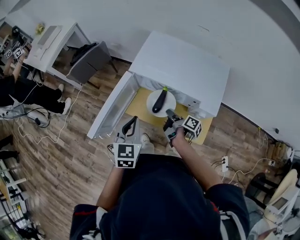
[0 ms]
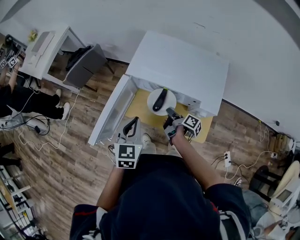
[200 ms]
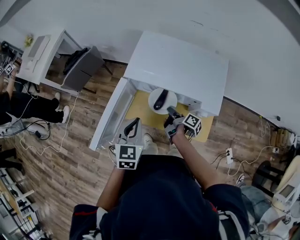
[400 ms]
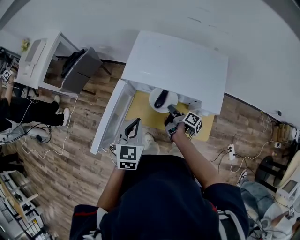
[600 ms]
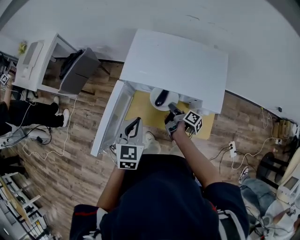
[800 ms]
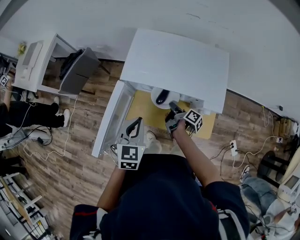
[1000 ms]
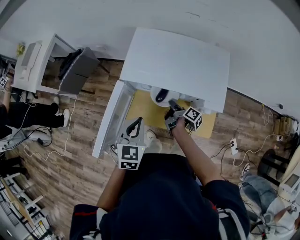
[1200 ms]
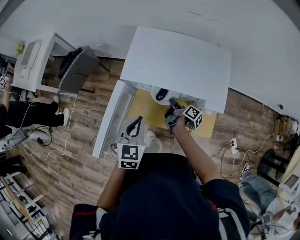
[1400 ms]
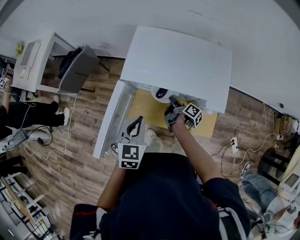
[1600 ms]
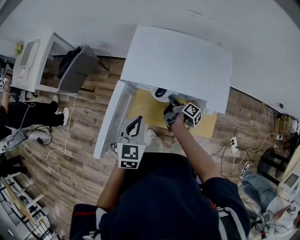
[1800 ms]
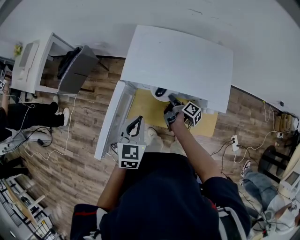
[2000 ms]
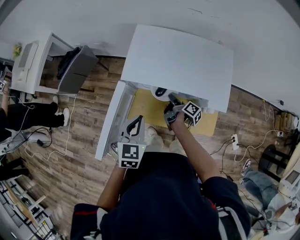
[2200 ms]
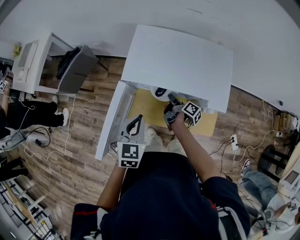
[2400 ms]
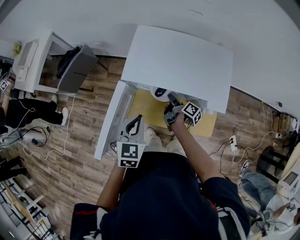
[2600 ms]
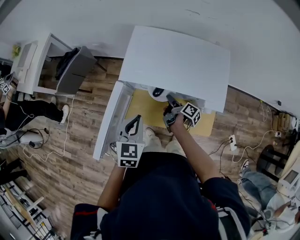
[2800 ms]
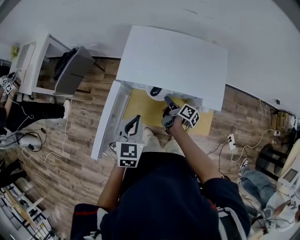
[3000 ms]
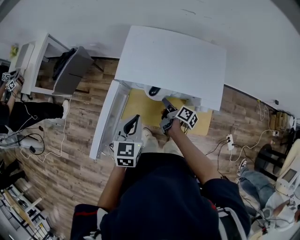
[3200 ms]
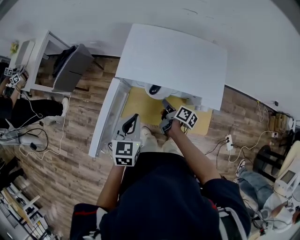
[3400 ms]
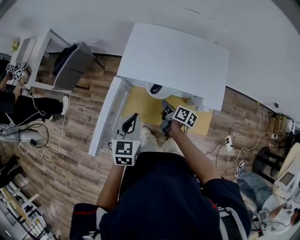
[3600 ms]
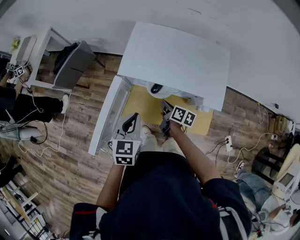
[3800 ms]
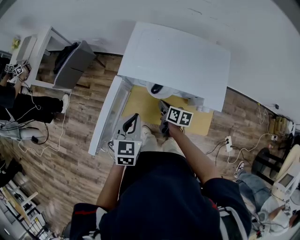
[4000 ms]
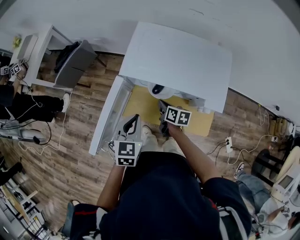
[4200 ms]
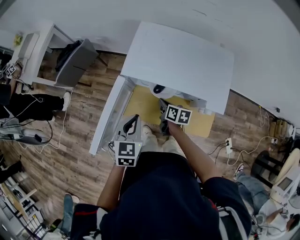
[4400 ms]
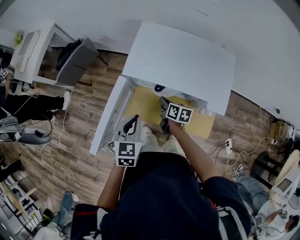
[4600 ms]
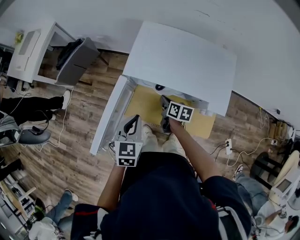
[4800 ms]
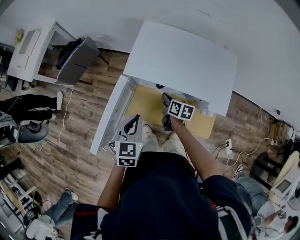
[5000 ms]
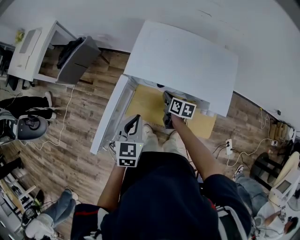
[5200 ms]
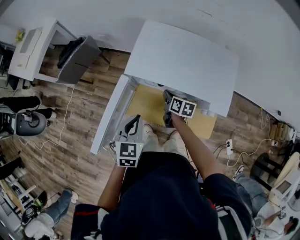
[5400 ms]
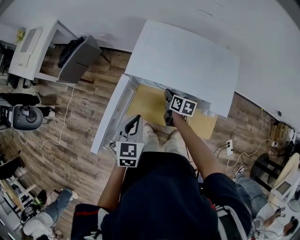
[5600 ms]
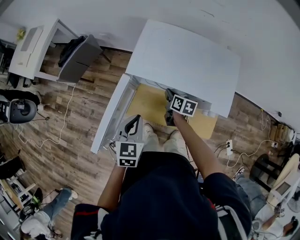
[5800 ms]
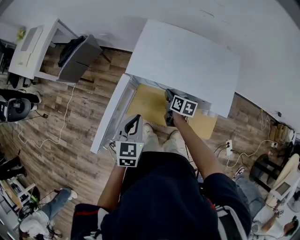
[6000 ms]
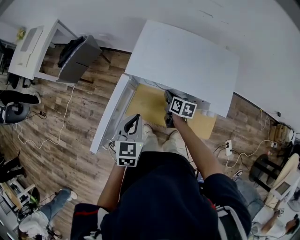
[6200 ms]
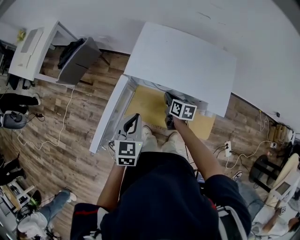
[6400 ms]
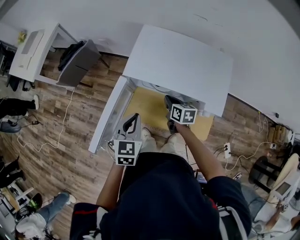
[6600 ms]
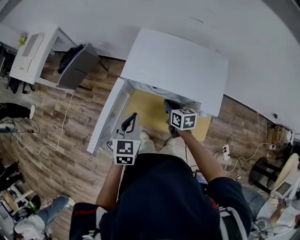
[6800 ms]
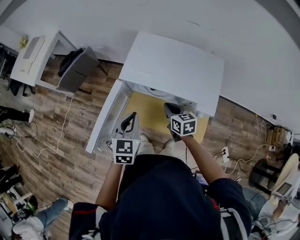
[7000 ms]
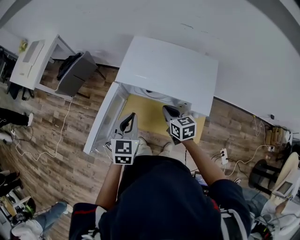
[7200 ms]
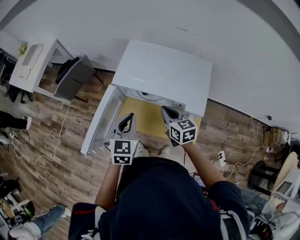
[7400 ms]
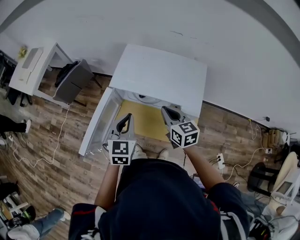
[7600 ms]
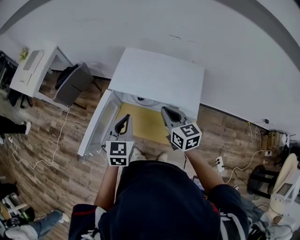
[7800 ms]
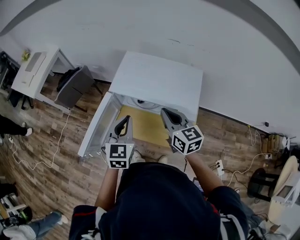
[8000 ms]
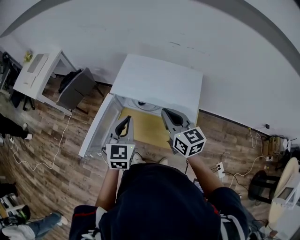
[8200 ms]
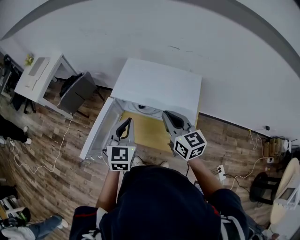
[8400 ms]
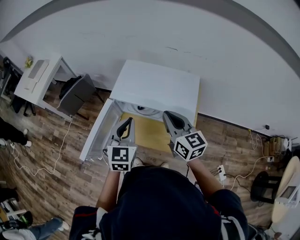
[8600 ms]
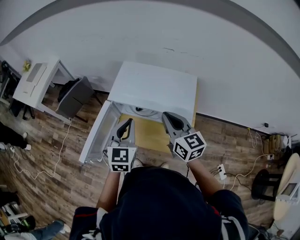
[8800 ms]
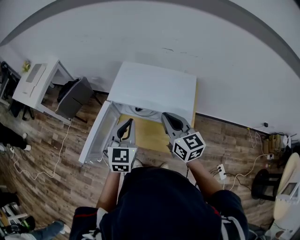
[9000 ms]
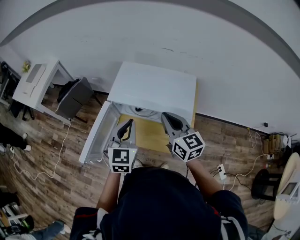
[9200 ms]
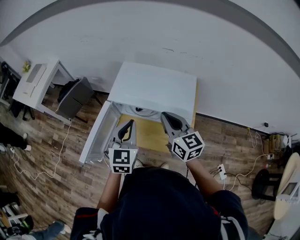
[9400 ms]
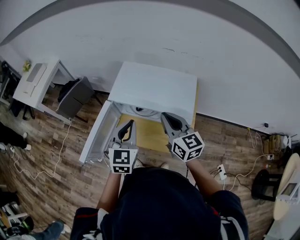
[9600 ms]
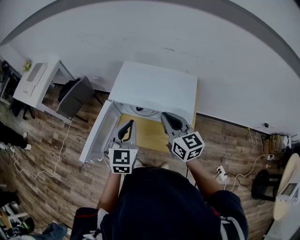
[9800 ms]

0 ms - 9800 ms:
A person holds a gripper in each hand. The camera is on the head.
0 ms - 1400 ms: The left gripper changes place by approximately 5 cm.
7000 ms - 8400 ms: The left gripper heads upward, covering about 10 cm.

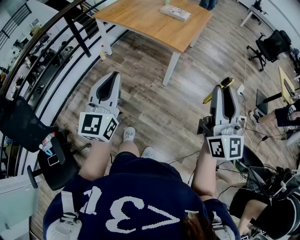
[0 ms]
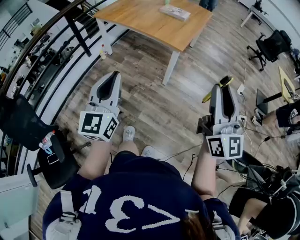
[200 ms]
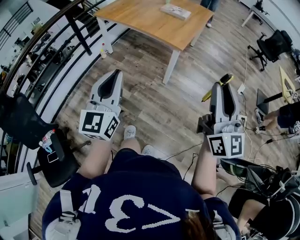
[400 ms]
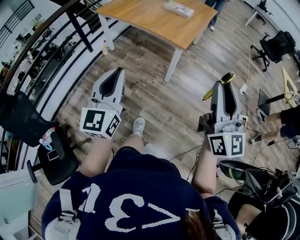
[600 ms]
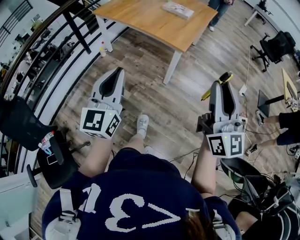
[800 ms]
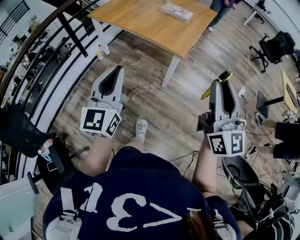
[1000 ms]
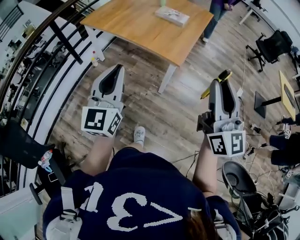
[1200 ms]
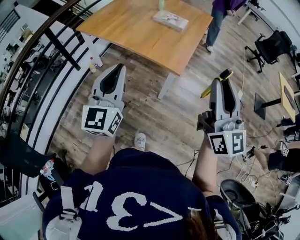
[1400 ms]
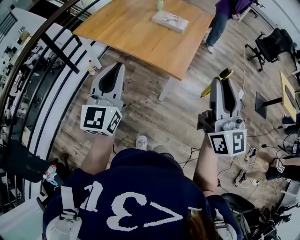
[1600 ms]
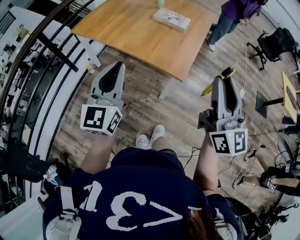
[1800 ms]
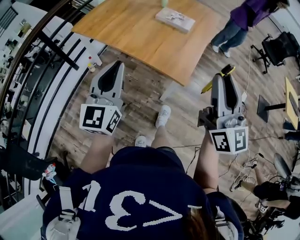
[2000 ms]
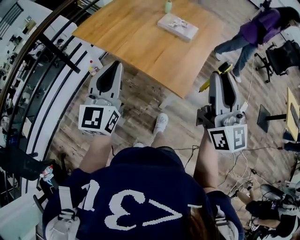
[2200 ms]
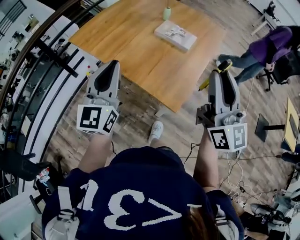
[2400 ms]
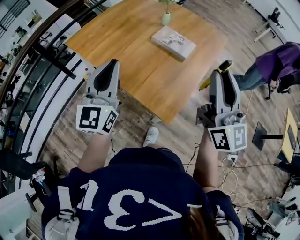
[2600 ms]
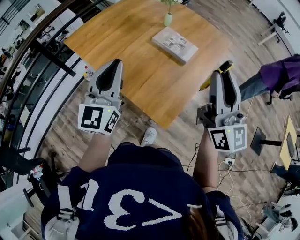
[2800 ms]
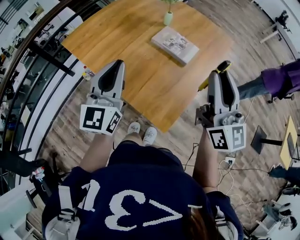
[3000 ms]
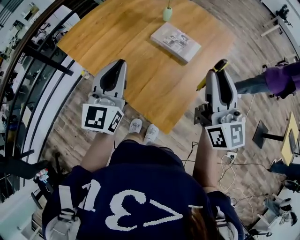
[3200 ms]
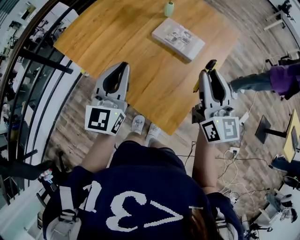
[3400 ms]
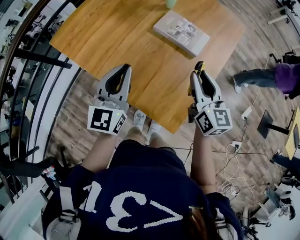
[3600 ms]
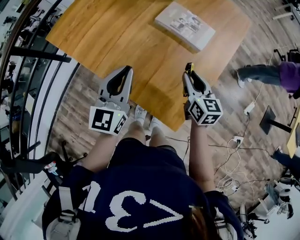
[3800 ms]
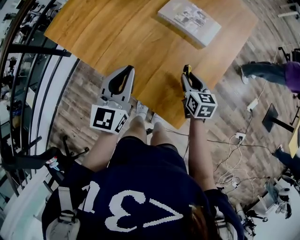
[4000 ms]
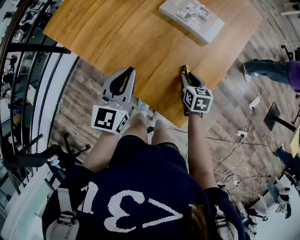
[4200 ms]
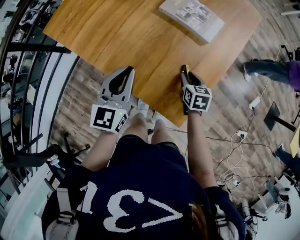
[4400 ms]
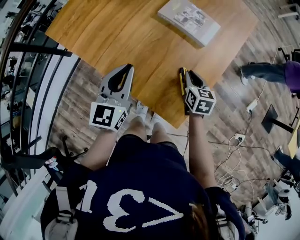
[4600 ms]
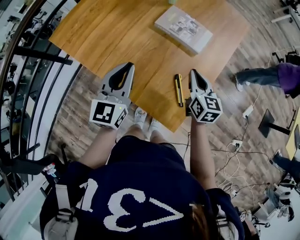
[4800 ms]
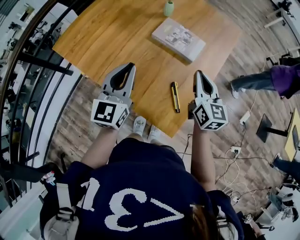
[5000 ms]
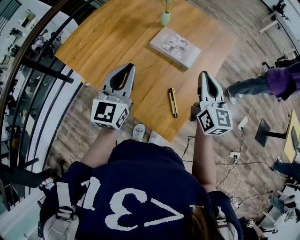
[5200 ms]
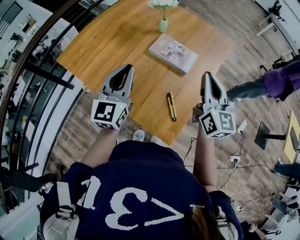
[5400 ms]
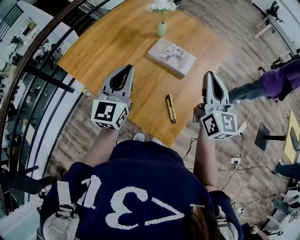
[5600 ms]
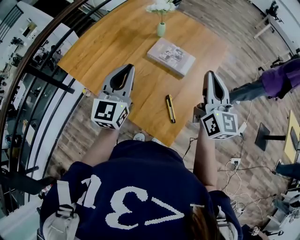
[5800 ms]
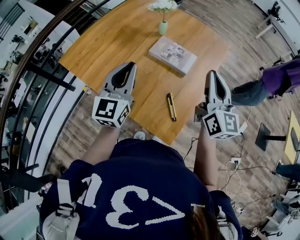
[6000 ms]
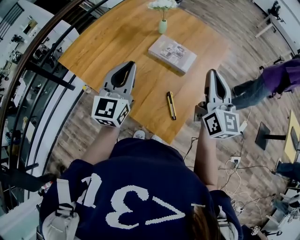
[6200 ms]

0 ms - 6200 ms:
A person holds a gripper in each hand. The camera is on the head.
0 ms - 1600 ms: The two grippers go approximately 30 cm forward.
1600 ms - 3200 ms: Both grippers travel together forward, some 40 cm.
3200 ms - 4600 ms: The right gripper travels downward by some 40 cm, and tips its fingers downward by approximately 50 degrees. Meanwhile the left gripper is displaced downward by about 15 cm.
4600 ms - 6200 ms: The right gripper is displaced upward by about 35 cm, and tips its fingers upward by some 50 degrees, while the left gripper heads upward, covering some 15 cm.

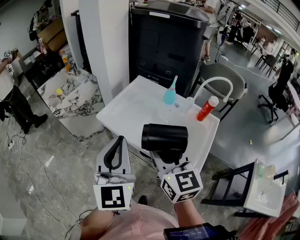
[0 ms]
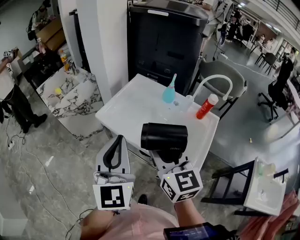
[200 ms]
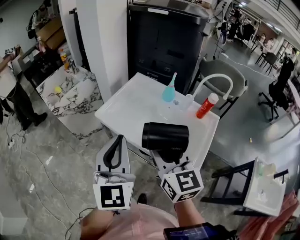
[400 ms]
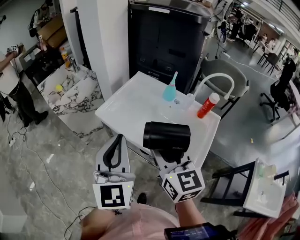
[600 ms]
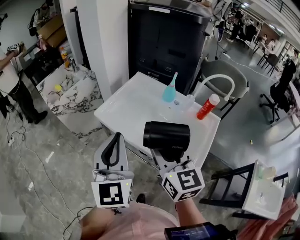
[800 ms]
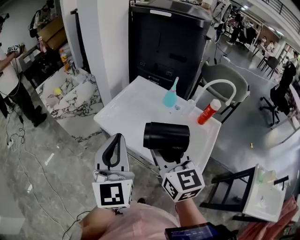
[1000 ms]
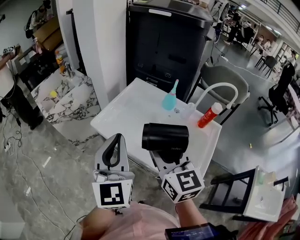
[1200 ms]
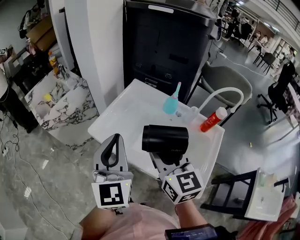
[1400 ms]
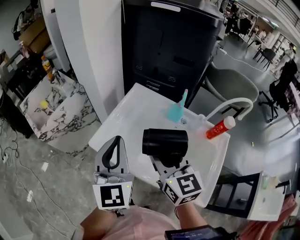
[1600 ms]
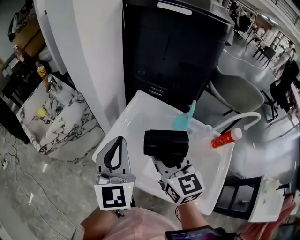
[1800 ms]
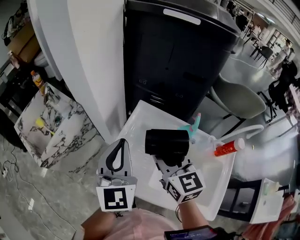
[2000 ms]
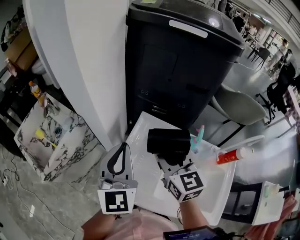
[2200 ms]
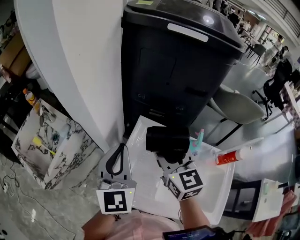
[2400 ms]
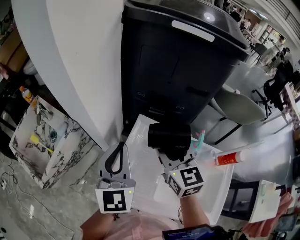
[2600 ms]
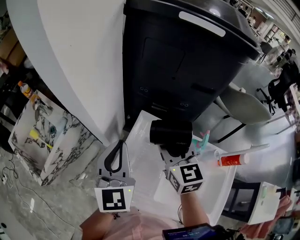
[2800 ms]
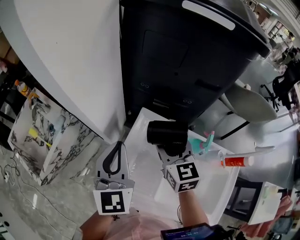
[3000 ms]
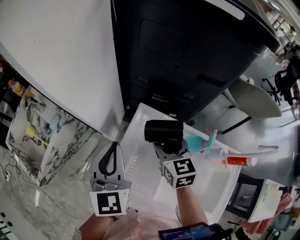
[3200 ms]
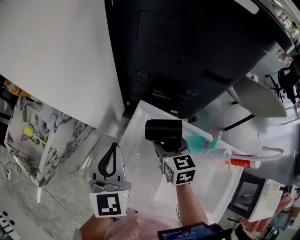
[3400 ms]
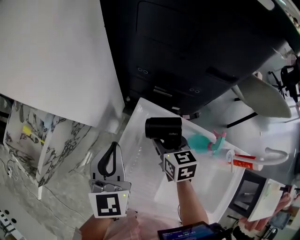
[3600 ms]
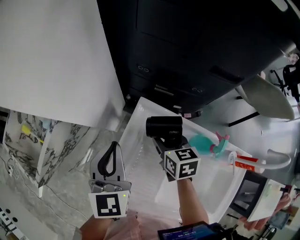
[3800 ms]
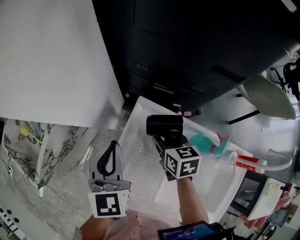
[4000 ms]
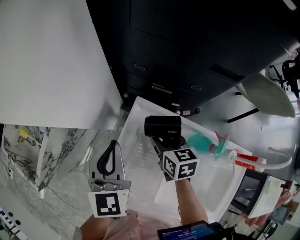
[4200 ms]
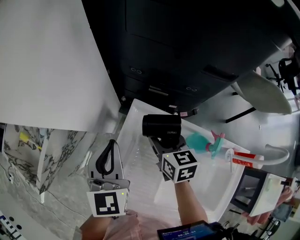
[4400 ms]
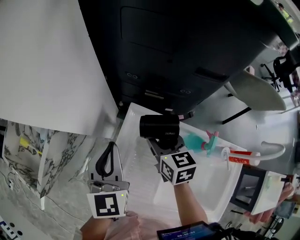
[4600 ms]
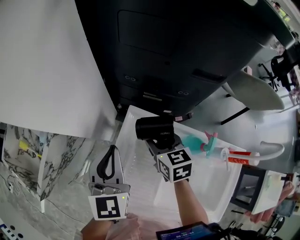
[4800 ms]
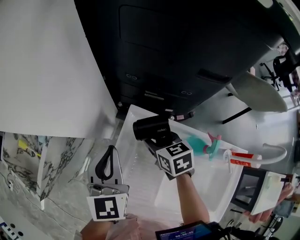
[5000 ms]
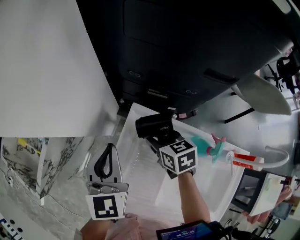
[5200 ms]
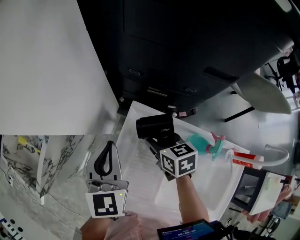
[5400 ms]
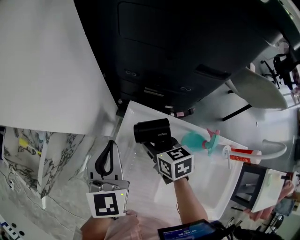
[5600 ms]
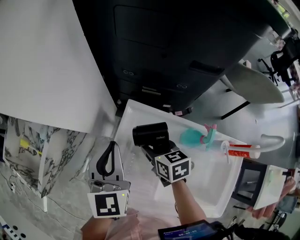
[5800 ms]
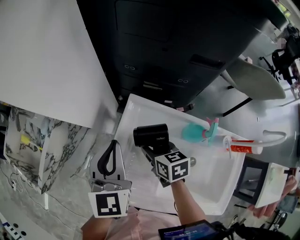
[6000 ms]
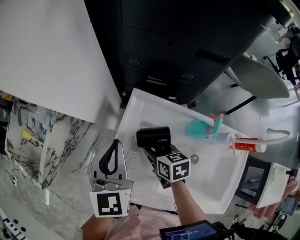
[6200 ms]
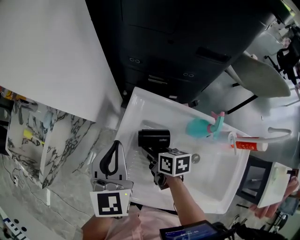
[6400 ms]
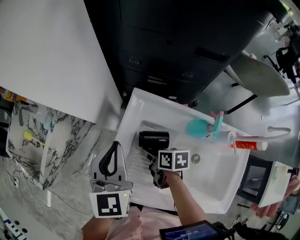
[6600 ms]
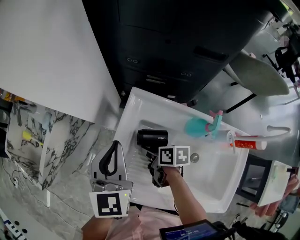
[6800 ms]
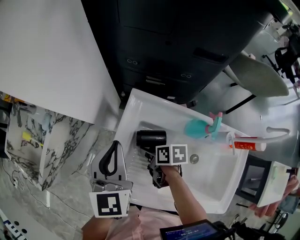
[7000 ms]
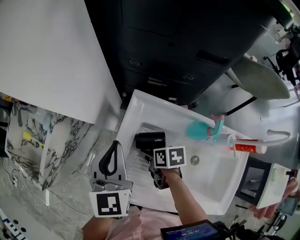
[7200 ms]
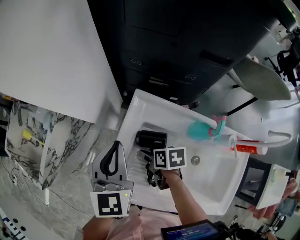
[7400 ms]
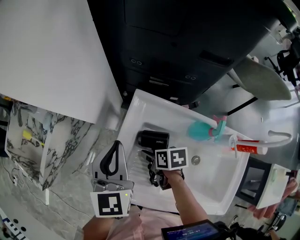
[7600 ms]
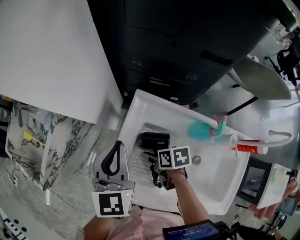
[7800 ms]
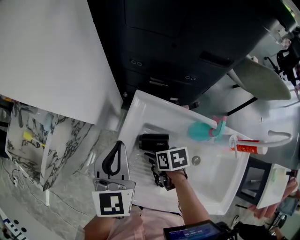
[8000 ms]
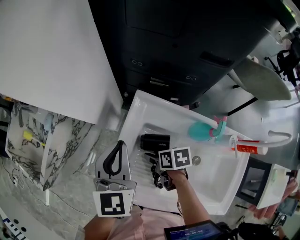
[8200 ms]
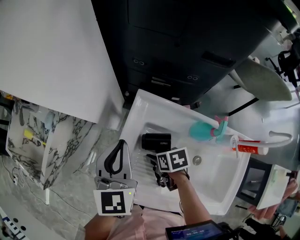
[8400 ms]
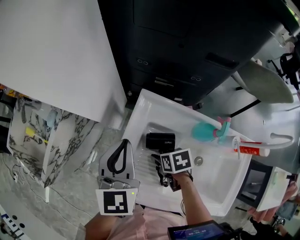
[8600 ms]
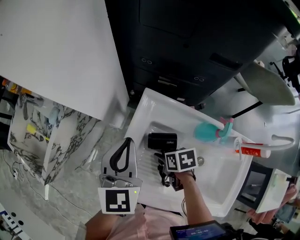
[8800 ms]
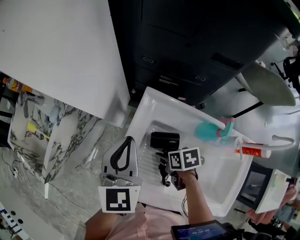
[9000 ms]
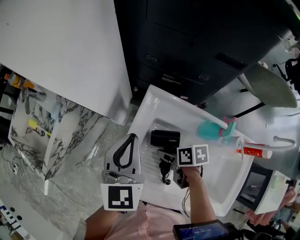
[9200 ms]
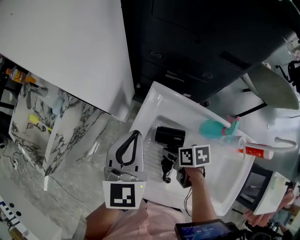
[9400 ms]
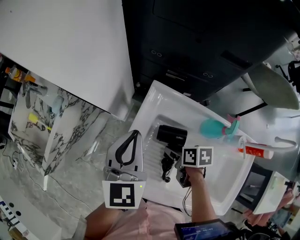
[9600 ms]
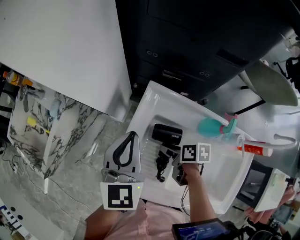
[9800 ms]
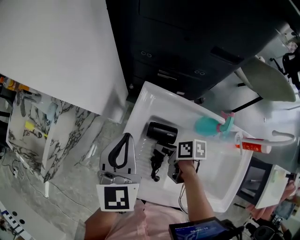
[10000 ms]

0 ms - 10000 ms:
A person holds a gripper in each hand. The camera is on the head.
0 ms - 1400 ms: Both grippers travel together forward, about 15 cm.
1400 ms - 2800 ms: The grippers both shift forward by approximately 30 cm.
2800 ms - 4200 ms: The right gripper moves downward, some 20 cm, and rotates roughly 30 degrees. Meanwhile the left gripper goes roughly 15 cm downward and forward.
4200 ms - 5800 ms: The right gripper shifts by some 5 cm.
5800 ms - 7200 ms: The right gripper heads downward and backward, covering roughly 10 cm, and swivels some 30 degrees.
7200 ms - 8600 ms: There are only small adjustments of the grippers.
8600 ms - 10000 ms: The right gripper swivels some 30 degrees.
